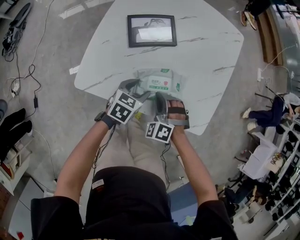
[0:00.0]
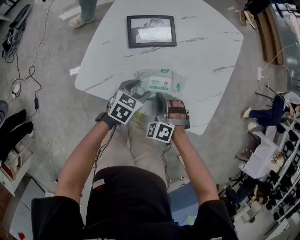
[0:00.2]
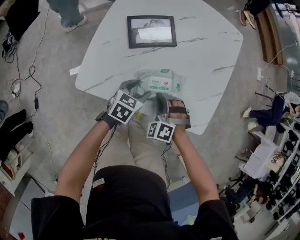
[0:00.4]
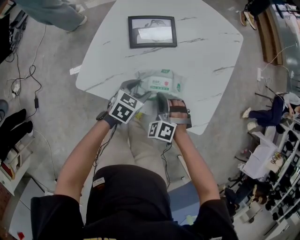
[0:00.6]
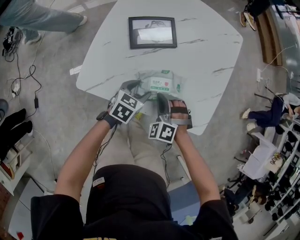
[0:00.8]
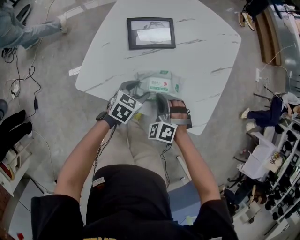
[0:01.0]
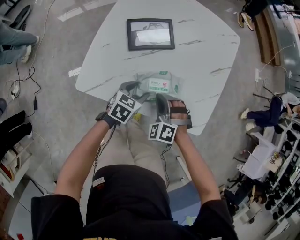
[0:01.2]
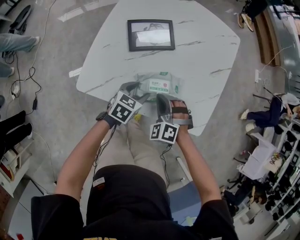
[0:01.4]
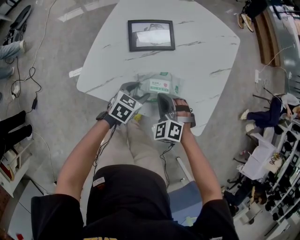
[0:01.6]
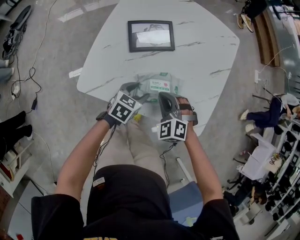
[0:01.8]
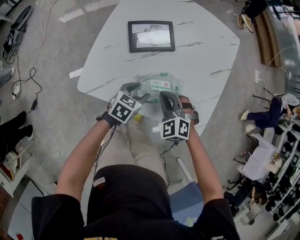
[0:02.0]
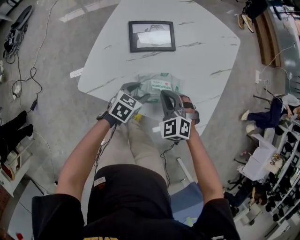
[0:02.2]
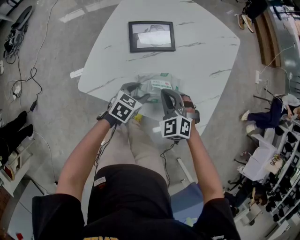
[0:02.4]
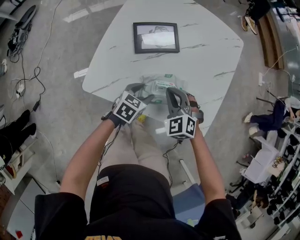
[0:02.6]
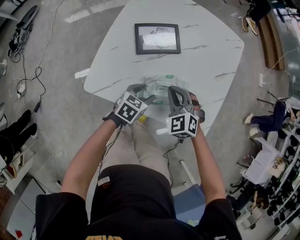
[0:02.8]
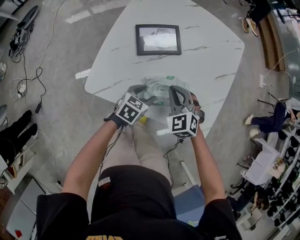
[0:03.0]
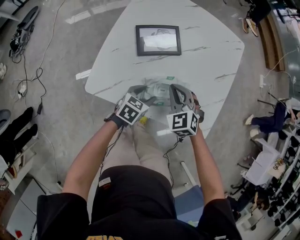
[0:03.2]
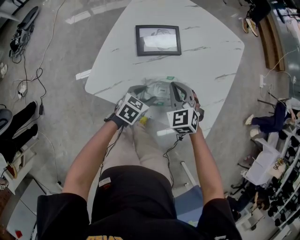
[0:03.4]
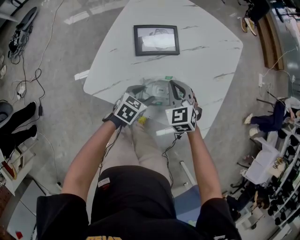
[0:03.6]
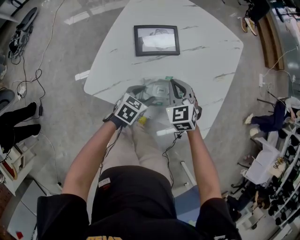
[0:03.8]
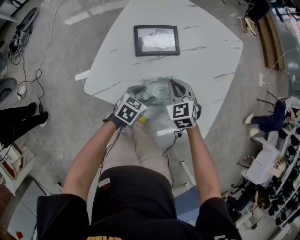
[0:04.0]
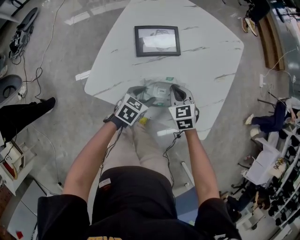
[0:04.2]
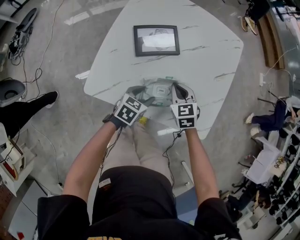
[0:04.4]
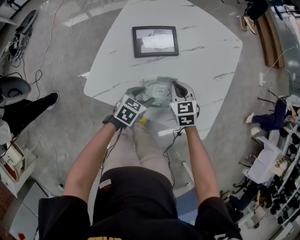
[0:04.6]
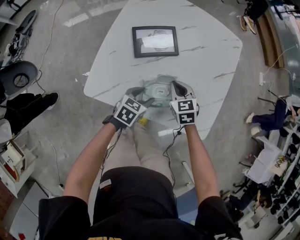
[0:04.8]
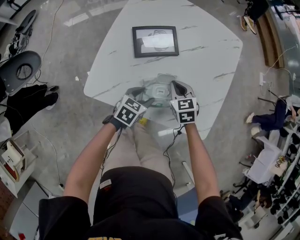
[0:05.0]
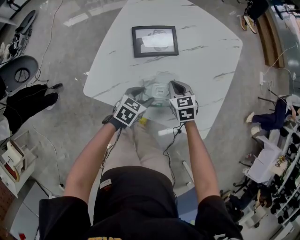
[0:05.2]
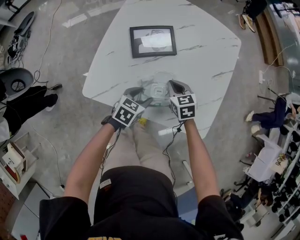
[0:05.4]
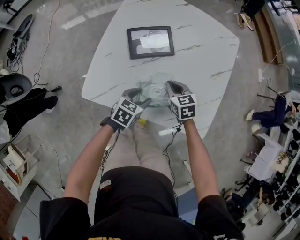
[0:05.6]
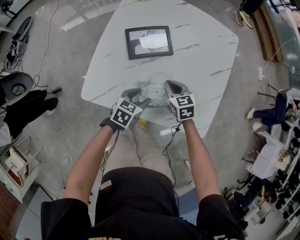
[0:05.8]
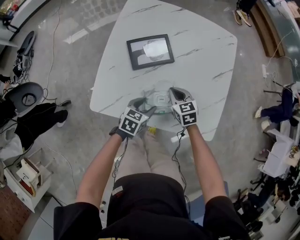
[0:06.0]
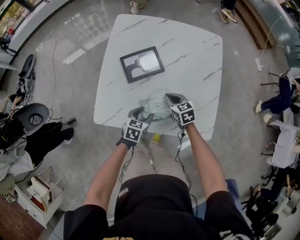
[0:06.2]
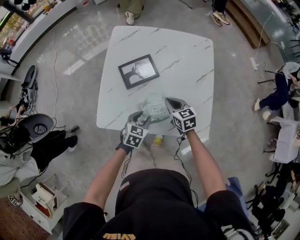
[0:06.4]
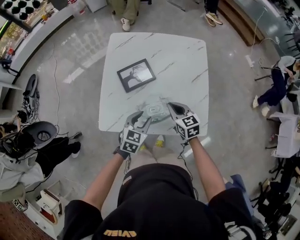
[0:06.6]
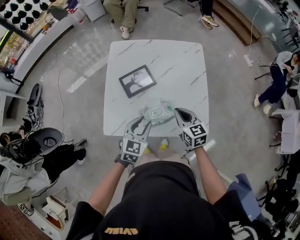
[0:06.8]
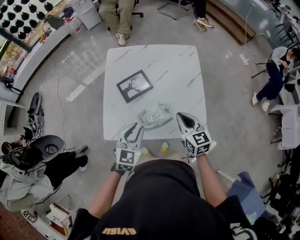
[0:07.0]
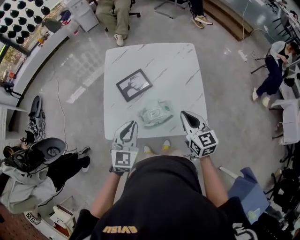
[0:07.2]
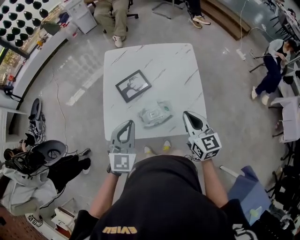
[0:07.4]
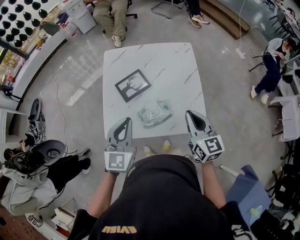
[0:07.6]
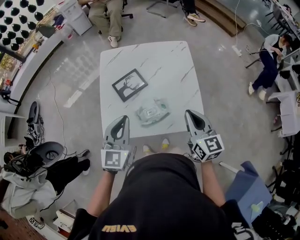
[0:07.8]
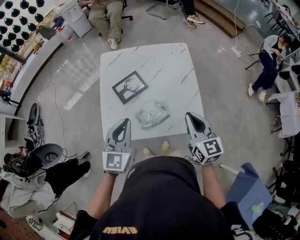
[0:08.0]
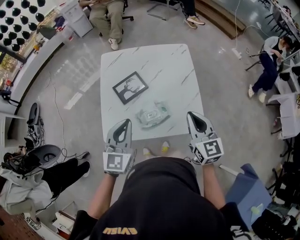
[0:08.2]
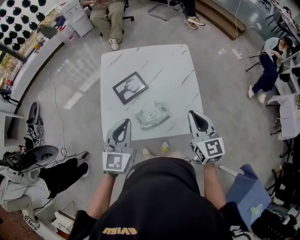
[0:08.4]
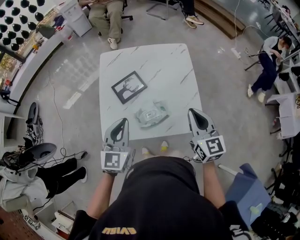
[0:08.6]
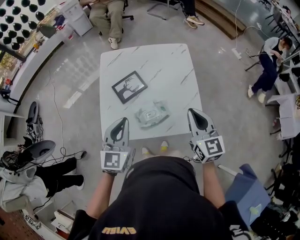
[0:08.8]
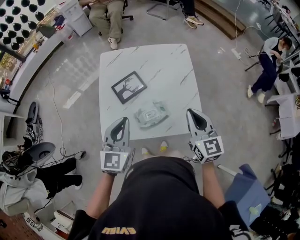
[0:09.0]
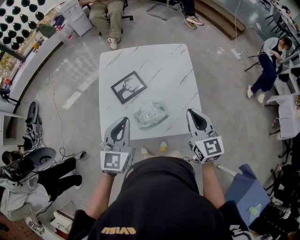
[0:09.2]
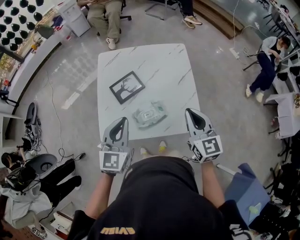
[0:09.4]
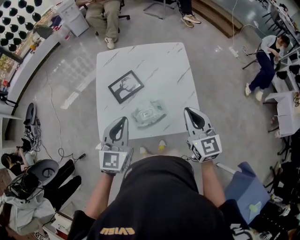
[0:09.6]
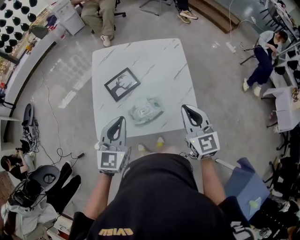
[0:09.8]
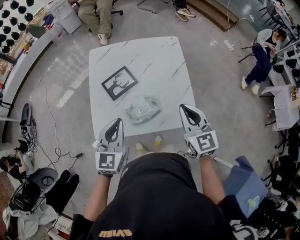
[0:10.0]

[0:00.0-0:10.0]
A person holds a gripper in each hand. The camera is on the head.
0.0 to 1.4 s: There are only small adjustments of the grippers.
1.4 to 2.8 s: The right gripper moves about 5 cm, and swivels about 20 degrees.
2.8 to 4.2 s: The right gripper shifts by approximately 5 cm, and swivels approximately 30 degrees.
4.2 to 5.8 s: There are only small adjustments of the grippers.
5.8 to 7.2 s: The right gripper heads upward and backward, covering about 30 cm, and turns by roughly 30 degrees. Meanwhile the left gripper is displaced upward by roughly 30 cm, rotates some 40 degrees, and closes its fingers.
7.2 to 8.6 s: Both grippers travel together upward, about 5 cm.
8.6 to 10.0 s: The grippers stay close to where they were, moving slightly.

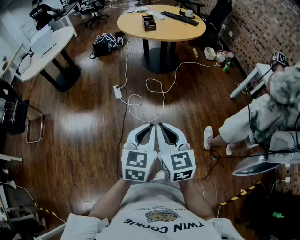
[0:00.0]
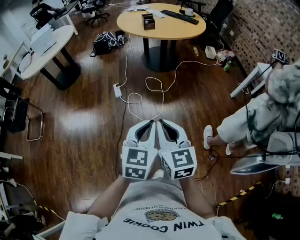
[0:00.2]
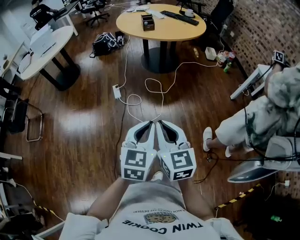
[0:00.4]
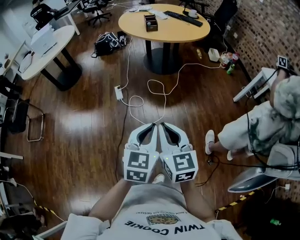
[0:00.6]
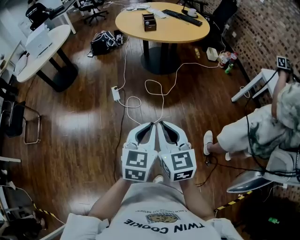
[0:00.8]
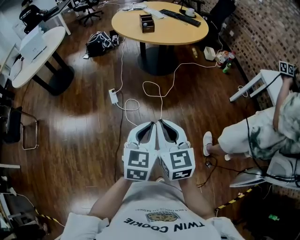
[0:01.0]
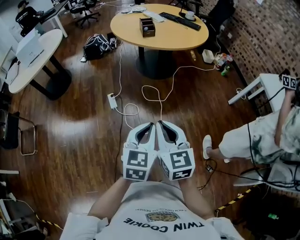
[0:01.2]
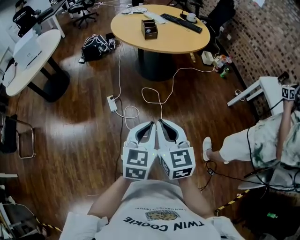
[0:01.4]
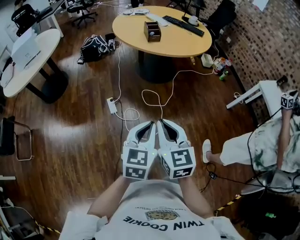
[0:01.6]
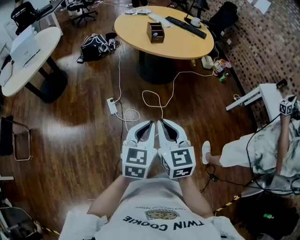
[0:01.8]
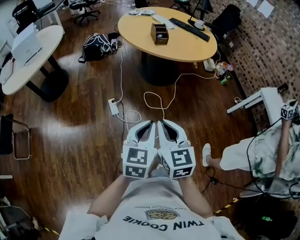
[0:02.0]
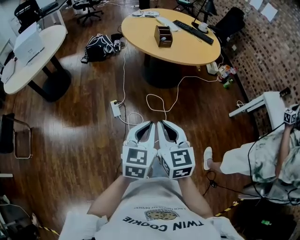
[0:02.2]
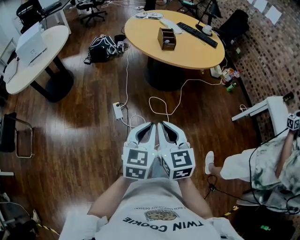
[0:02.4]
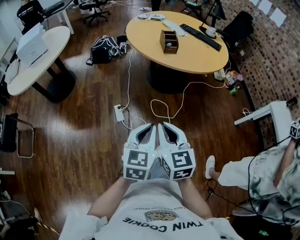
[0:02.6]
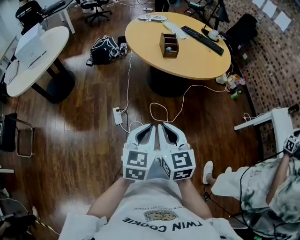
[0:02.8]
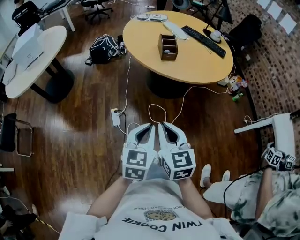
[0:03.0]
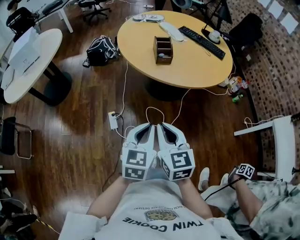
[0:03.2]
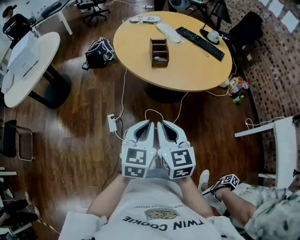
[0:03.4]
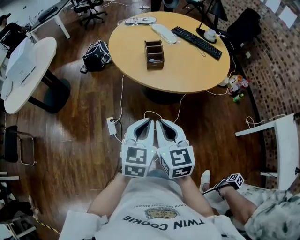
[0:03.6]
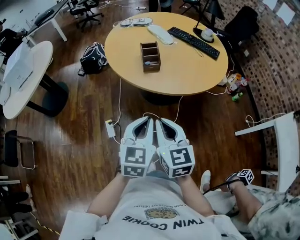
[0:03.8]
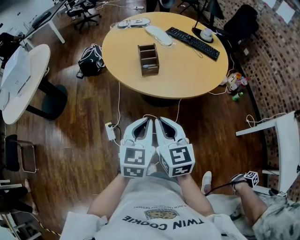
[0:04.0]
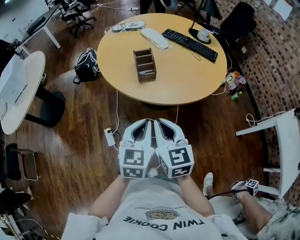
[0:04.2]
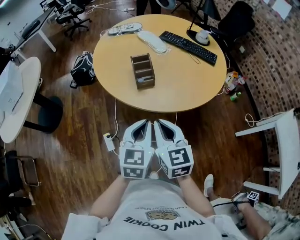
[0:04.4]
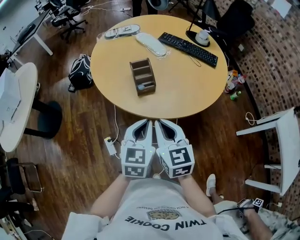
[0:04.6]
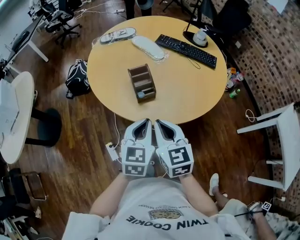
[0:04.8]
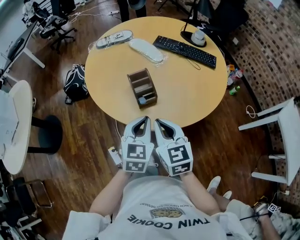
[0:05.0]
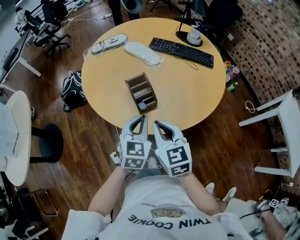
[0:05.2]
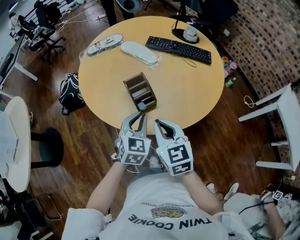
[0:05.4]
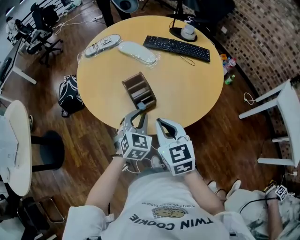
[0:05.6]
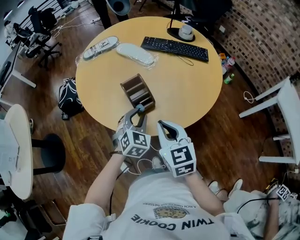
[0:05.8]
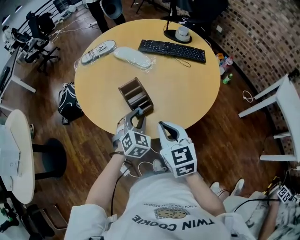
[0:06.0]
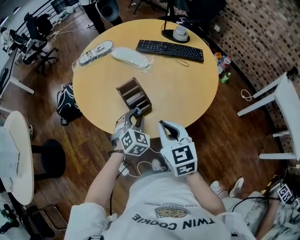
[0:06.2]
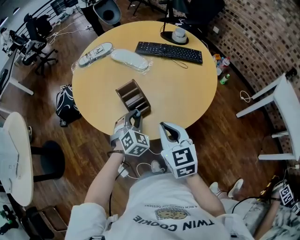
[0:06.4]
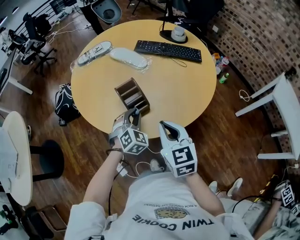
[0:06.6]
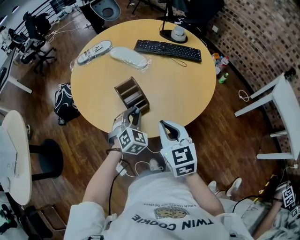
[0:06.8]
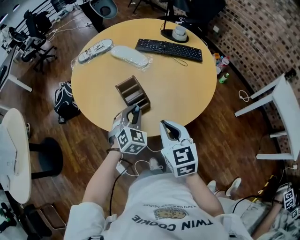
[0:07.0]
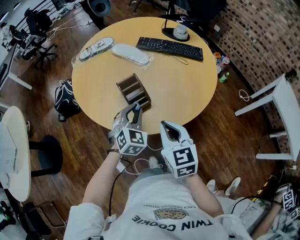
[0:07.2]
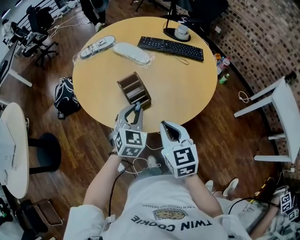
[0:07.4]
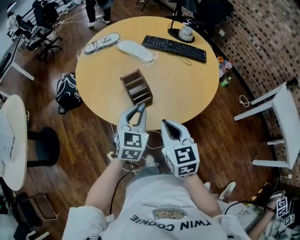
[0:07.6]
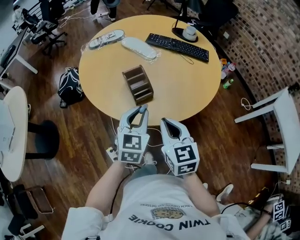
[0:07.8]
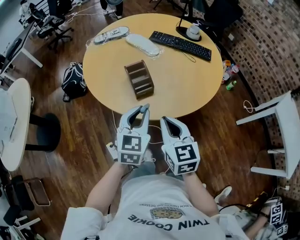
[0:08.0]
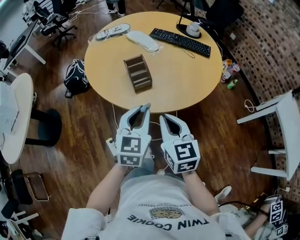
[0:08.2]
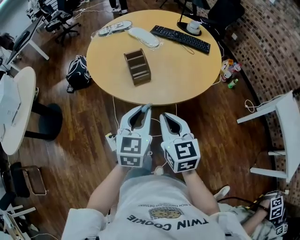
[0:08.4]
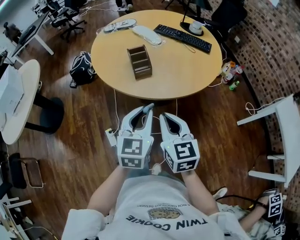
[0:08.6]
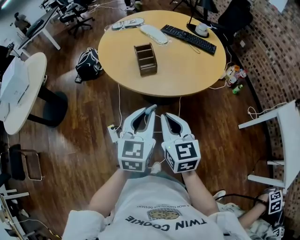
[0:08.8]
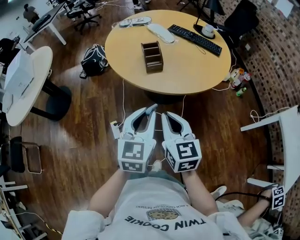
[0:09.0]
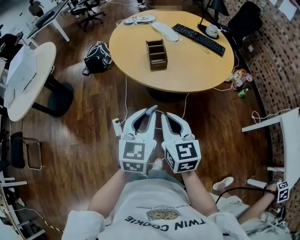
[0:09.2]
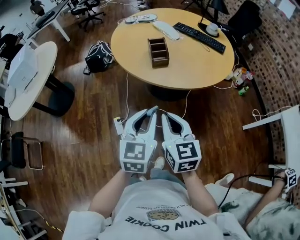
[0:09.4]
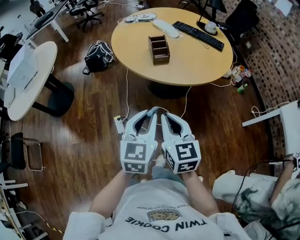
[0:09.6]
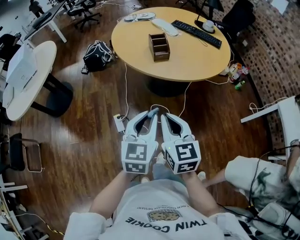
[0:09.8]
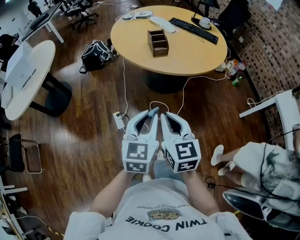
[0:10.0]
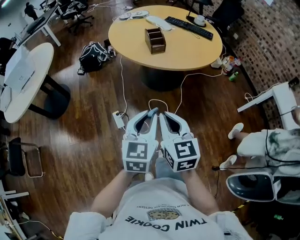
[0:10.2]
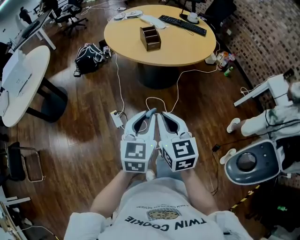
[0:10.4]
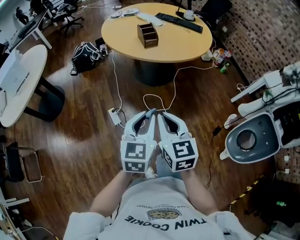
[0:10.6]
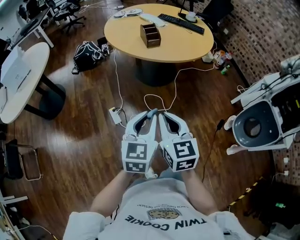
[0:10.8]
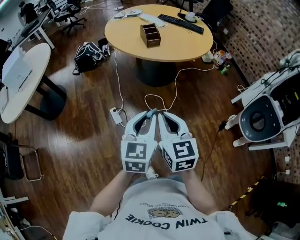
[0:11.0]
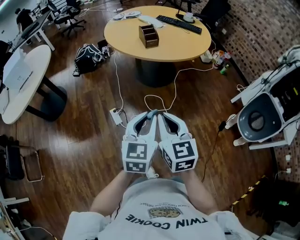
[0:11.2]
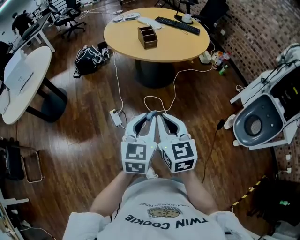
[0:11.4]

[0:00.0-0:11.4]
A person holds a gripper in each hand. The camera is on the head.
0.0 to 1.4 s: The two grippers go about 25 cm forward.
1.4 to 2.8 s: Both grippers travel together forward, some 20 cm.
2.8 to 4.2 s: Both grippers travel together forward and to the right, approximately 30 cm.
4.2 to 5.6 s: The grippers both shift forward by approximately 25 cm. The left gripper changes its angle by approximately 30 degrees.
5.6 to 7.2 s: The grippers stay close to where they were, moving slightly.
7.2 to 8.6 s: The grippers both shift backward by some 20 cm. The left gripper swivels approximately 40 degrees.
8.6 to 10.0 s: The two grippers go roughly 20 cm backward and to the left.
10.0 to 11.4 s: Both grippers move backward, roughly 15 cm.

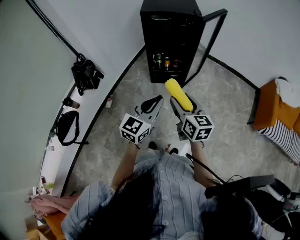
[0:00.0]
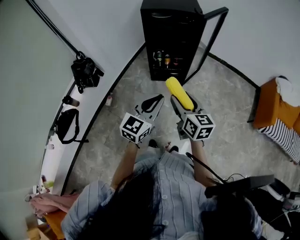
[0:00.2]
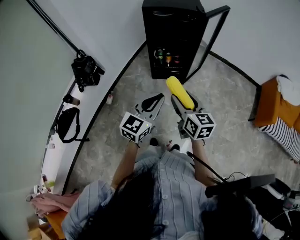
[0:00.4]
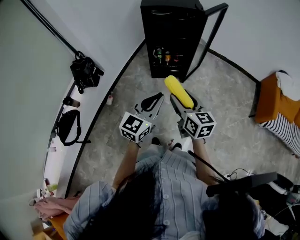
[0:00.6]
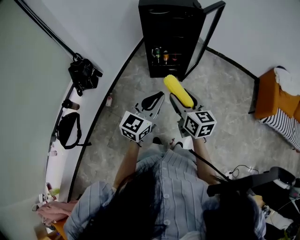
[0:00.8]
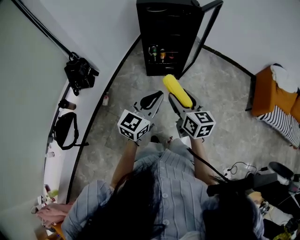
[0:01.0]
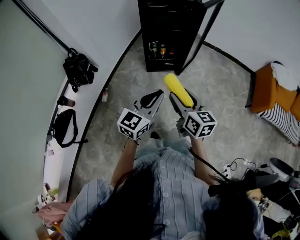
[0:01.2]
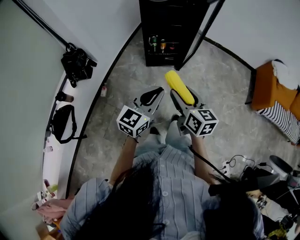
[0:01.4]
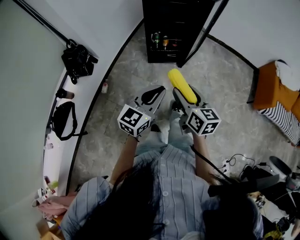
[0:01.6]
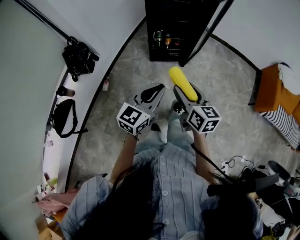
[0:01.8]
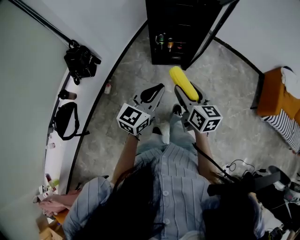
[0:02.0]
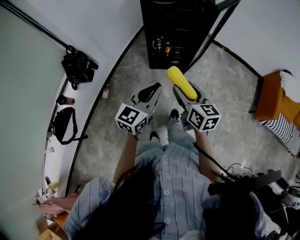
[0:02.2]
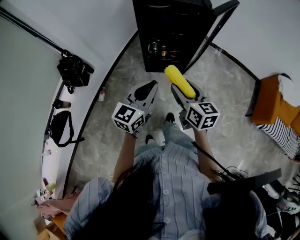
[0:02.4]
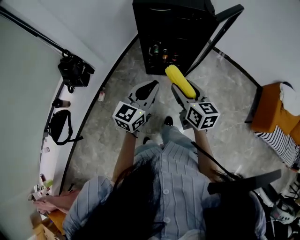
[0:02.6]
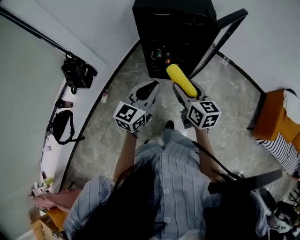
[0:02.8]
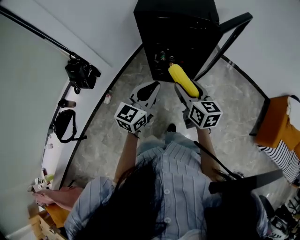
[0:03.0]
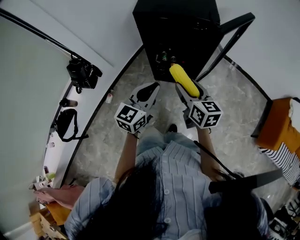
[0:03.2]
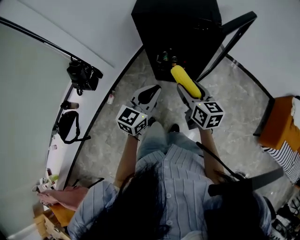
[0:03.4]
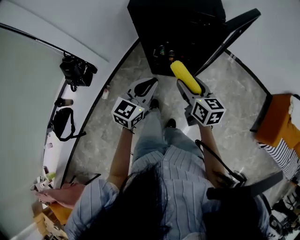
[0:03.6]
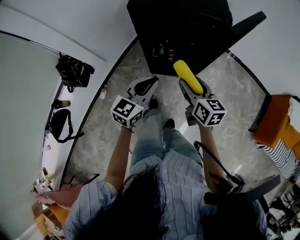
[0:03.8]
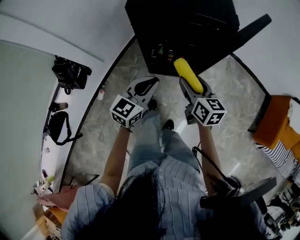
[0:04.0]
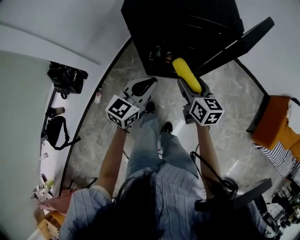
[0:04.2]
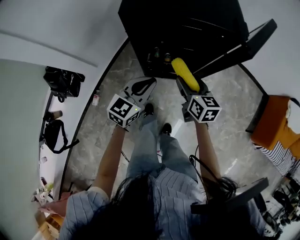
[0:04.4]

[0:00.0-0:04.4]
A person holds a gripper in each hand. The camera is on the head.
0.0 to 1.4 s: The right gripper moves about 5 cm. Meanwhile the left gripper shifts by some 5 cm.
1.4 to 3.0 s: Both grippers move forward, about 30 cm.
3.0 to 4.4 s: The two grippers go some 20 cm forward and downward.
